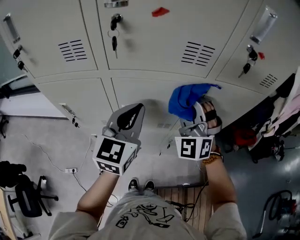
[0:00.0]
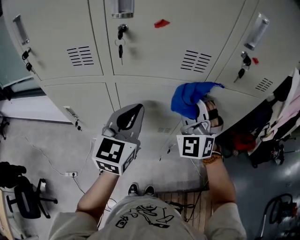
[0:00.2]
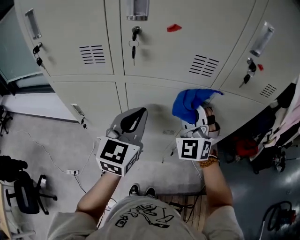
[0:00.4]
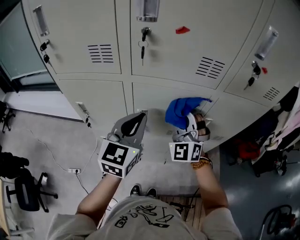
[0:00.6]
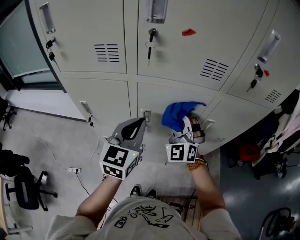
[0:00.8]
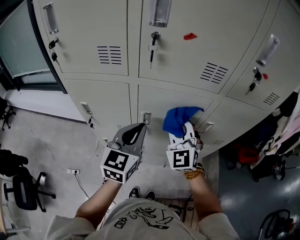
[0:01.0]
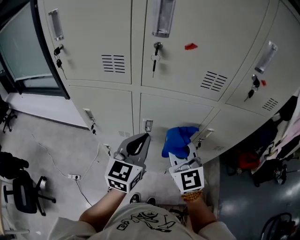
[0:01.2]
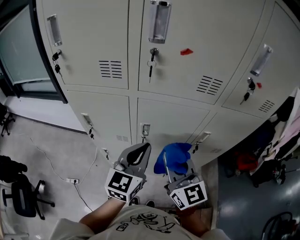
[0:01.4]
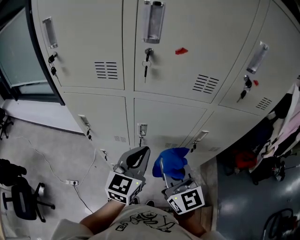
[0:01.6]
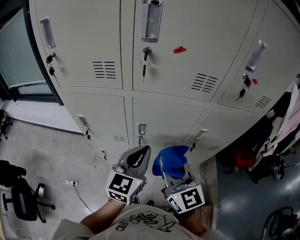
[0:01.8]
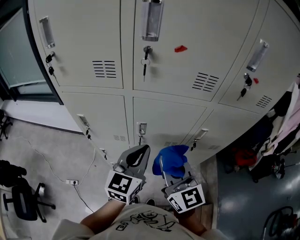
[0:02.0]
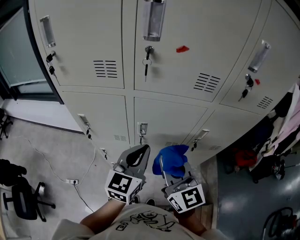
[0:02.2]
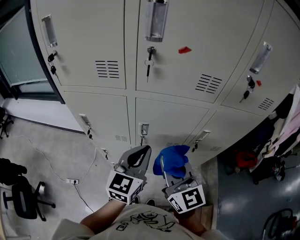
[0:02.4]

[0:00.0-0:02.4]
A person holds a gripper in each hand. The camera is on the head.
0:00.0 to 0:01.2: The left gripper travels backward by roughly 5 cm; the right gripper moves backward and to the left, approximately 10 cm, travels downward and back again, approximately 5 cm each way, and rotates around the line of its fingers by approximately 50 degrees, clockwise from behind.
0:01.2 to 0:02.4: The right gripper travels backward by roughly 5 cm.

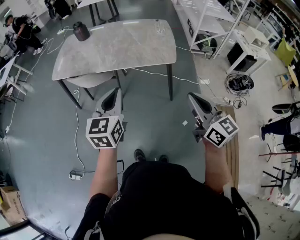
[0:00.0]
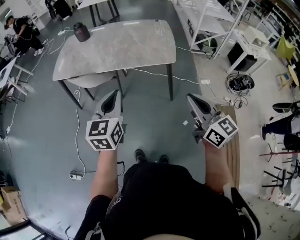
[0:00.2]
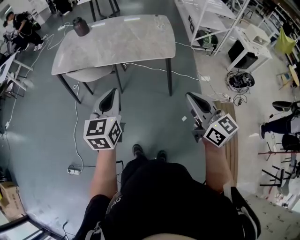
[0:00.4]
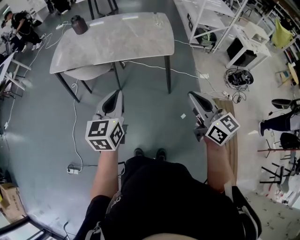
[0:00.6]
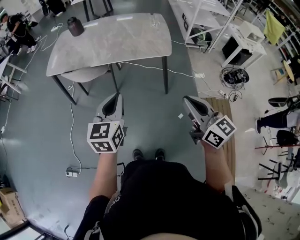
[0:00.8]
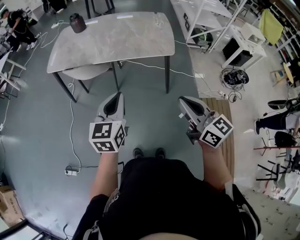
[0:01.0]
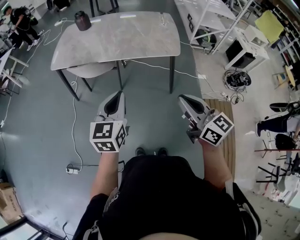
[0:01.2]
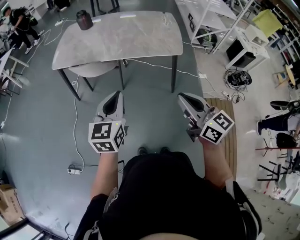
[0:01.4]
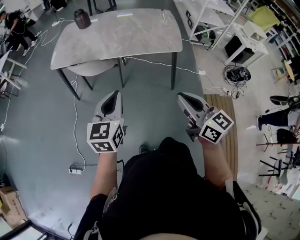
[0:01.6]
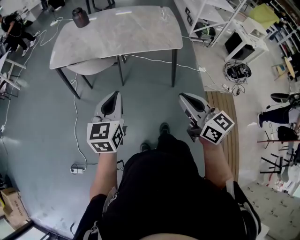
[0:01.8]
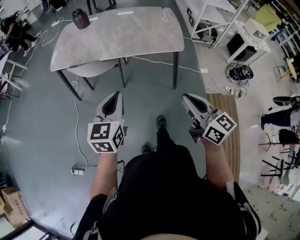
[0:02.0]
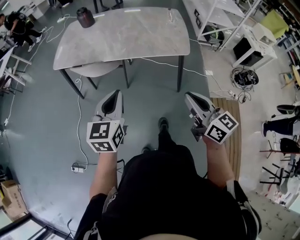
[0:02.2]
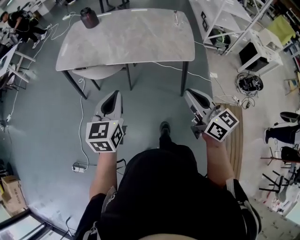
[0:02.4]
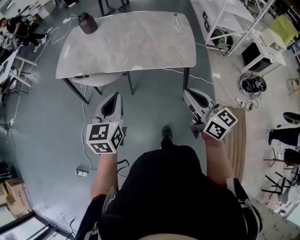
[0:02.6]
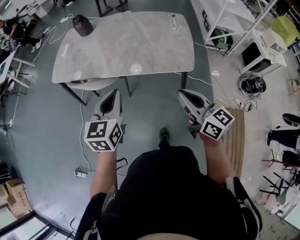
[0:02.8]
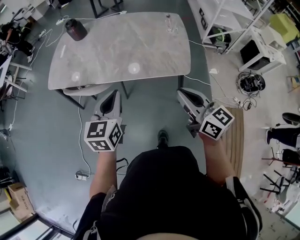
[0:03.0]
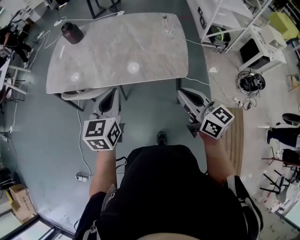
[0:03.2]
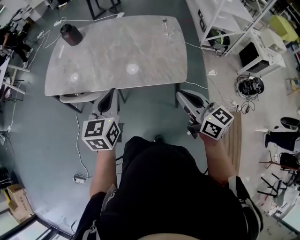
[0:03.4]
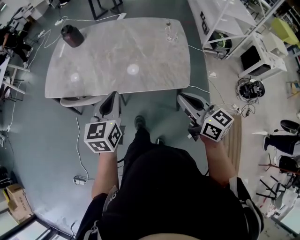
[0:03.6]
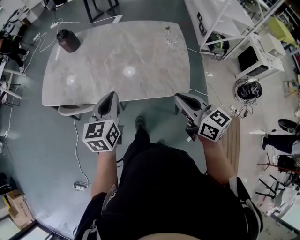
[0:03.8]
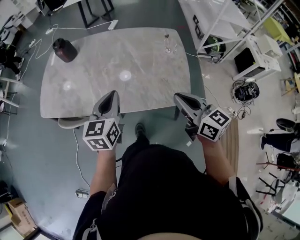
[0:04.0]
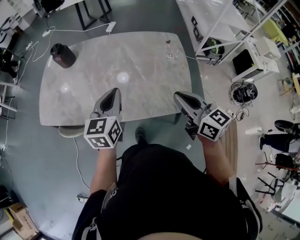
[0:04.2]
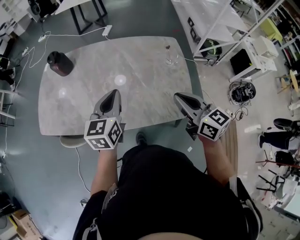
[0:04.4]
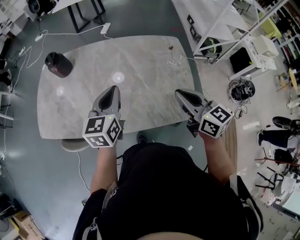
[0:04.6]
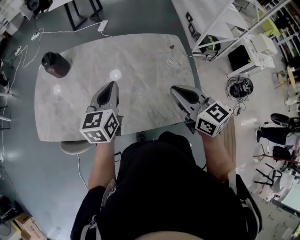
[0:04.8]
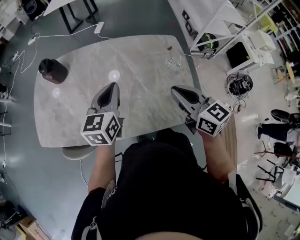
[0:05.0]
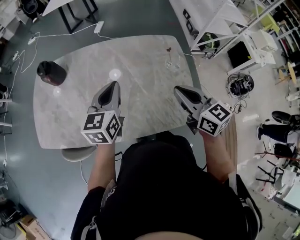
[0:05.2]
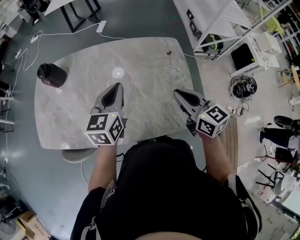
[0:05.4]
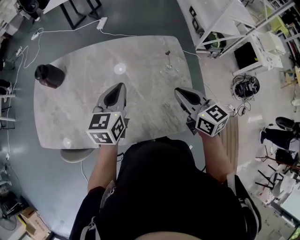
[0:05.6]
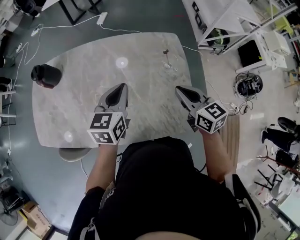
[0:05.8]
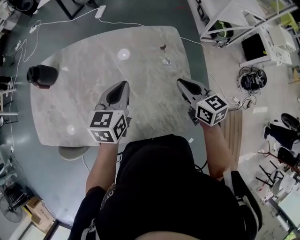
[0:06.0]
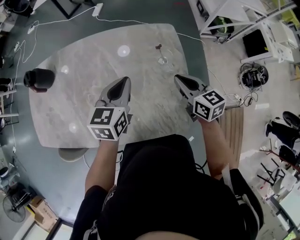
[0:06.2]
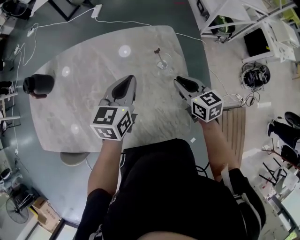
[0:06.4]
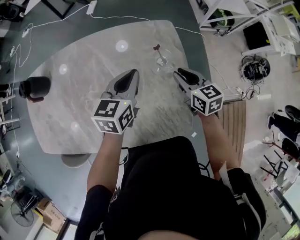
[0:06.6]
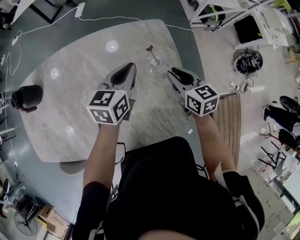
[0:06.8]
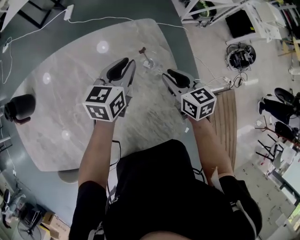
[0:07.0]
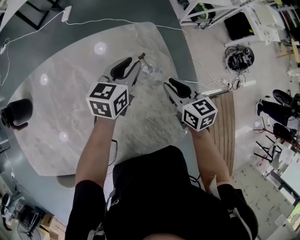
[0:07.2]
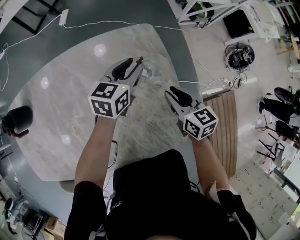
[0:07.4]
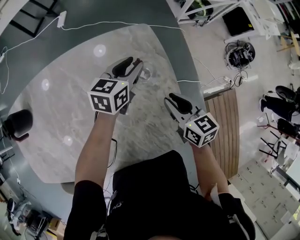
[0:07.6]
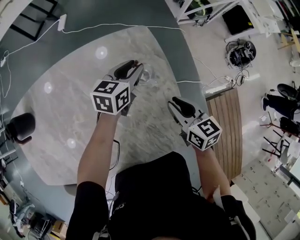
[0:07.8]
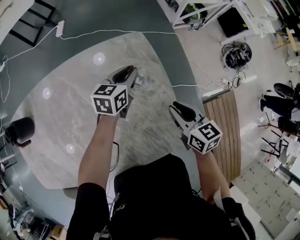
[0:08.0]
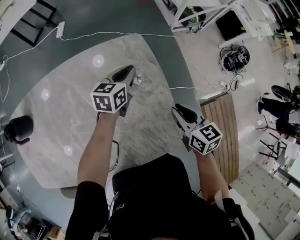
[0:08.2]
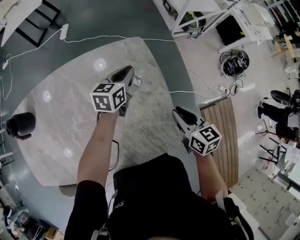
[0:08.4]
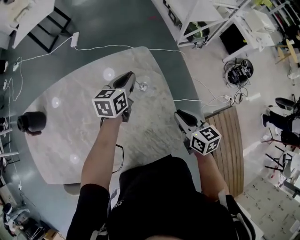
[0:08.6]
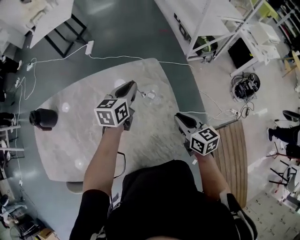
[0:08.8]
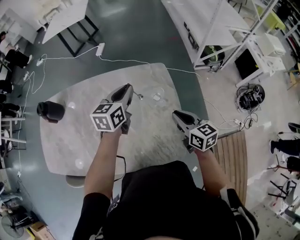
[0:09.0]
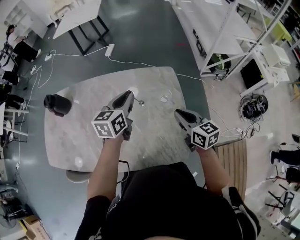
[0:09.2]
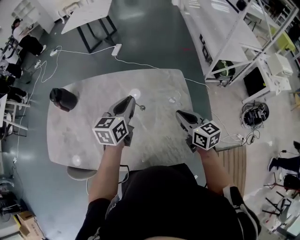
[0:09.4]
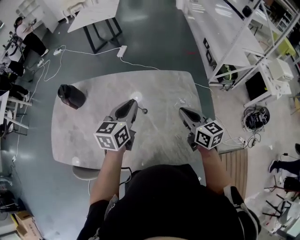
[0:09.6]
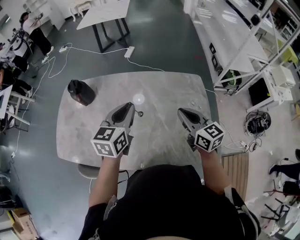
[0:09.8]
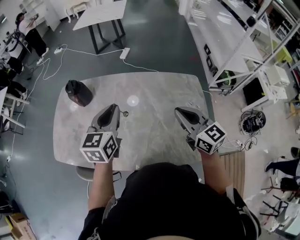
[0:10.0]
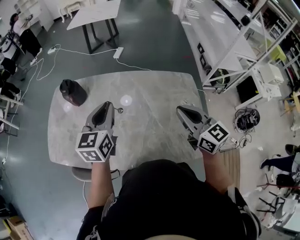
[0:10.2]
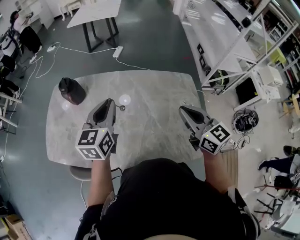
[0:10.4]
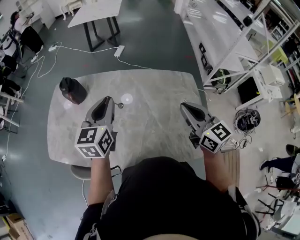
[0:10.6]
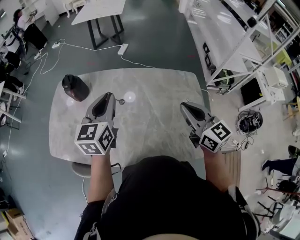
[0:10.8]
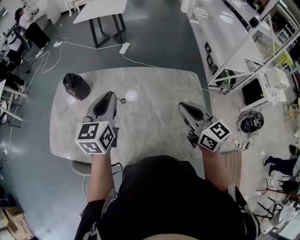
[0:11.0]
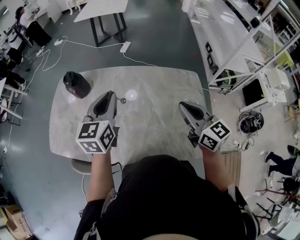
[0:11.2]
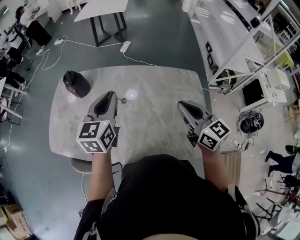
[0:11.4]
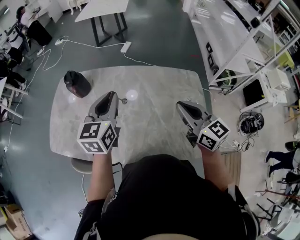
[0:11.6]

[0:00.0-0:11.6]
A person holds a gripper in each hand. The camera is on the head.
0:00.0 to 0:01.4: Both grippers move to the left, approximately 10 cm.
0:01.4 to 0:02.8: The right gripper is displaced forward and to the right by some 20 cm; the left gripper is displaced forward by approximately 20 cm.
0:02.8 to 0:04.4: The two grippers go approximately 30 cm forward.
0:04.4 to 0:05.8: The left gripper goes about 15 cm forward and to the right; the right gripper shifts about 20 cm forward, to the right and downward.
0:05.8 to 0:07.2: The right gripper goes approximately 15 cm downward, forward and to the right, and opens its fingers. Meanwhile the left gripper travels forward, to the right and downward by some 25 cm, turns by roughly 20 degrees, and opens up.
0:07.2 to 0:08.8: The right gripper moves backward, upward and to the right, some 10 cm, while the left gripper goes some 5 cm upward.
0:08.8 to 0:10.2: The left gripper shifts some 35 cm to the left, and changes its angle by roughly 30 degrees, while the right gripper heads to the left and upward, covering about 30 cm, and rotates some 30 degrees.
0:10.2 to 0:11.6: There are only small adjustments of the grippers.

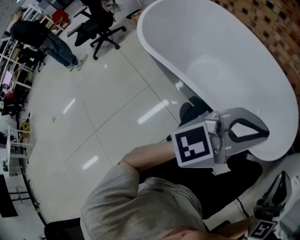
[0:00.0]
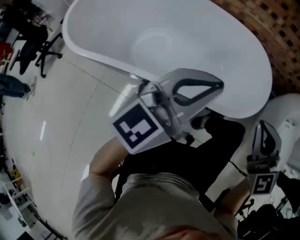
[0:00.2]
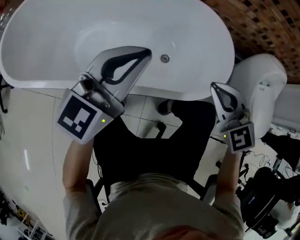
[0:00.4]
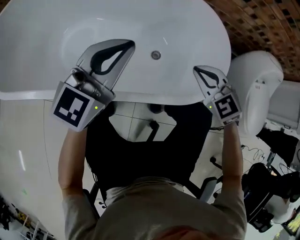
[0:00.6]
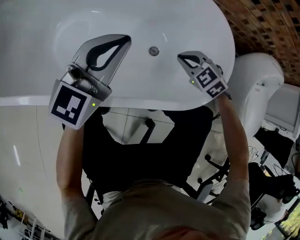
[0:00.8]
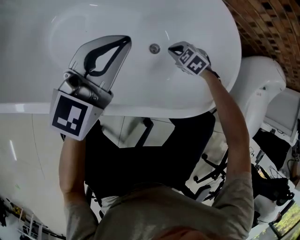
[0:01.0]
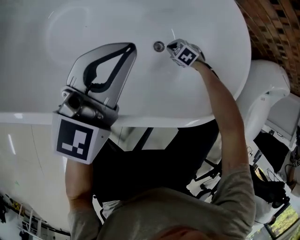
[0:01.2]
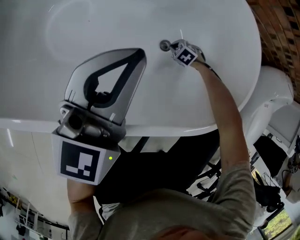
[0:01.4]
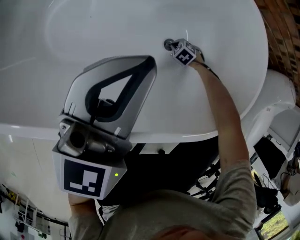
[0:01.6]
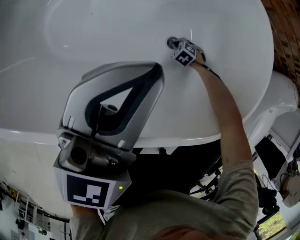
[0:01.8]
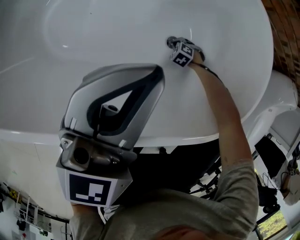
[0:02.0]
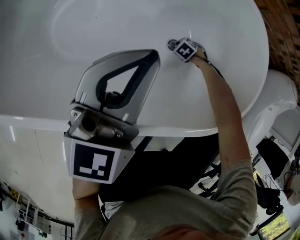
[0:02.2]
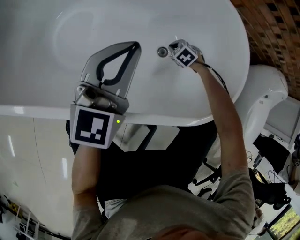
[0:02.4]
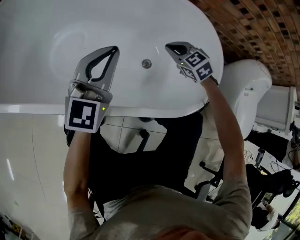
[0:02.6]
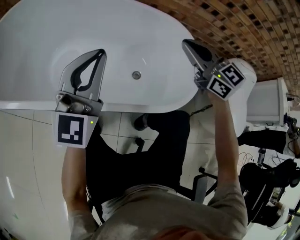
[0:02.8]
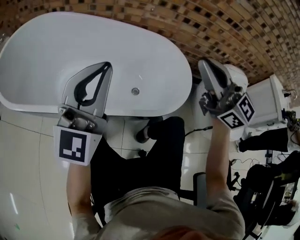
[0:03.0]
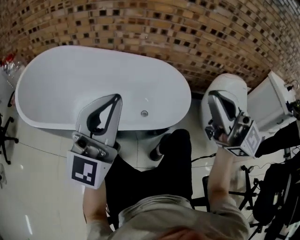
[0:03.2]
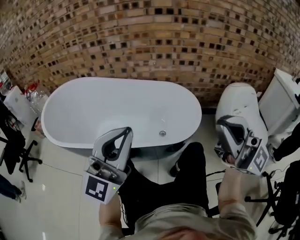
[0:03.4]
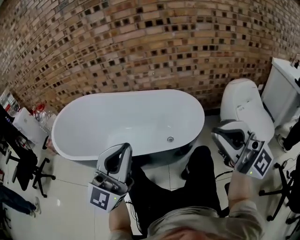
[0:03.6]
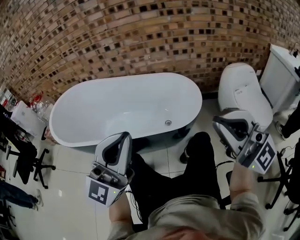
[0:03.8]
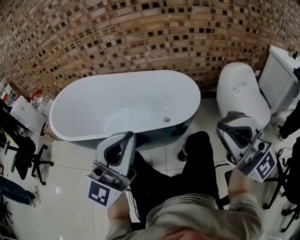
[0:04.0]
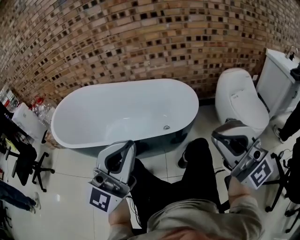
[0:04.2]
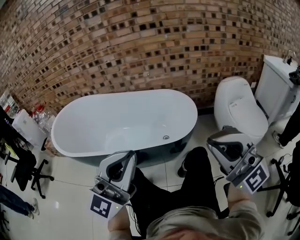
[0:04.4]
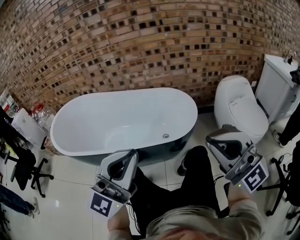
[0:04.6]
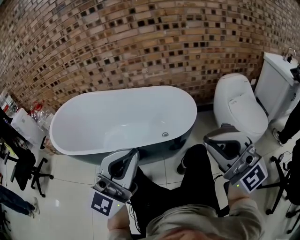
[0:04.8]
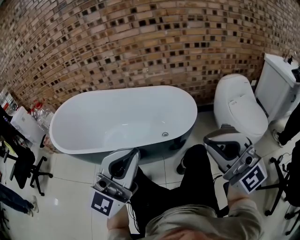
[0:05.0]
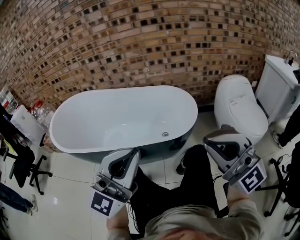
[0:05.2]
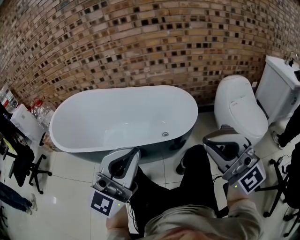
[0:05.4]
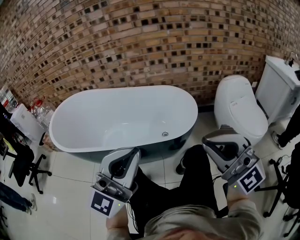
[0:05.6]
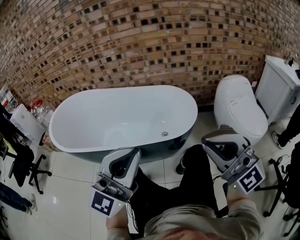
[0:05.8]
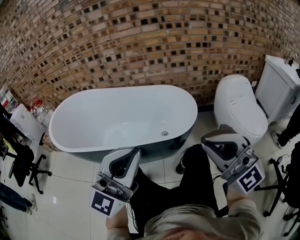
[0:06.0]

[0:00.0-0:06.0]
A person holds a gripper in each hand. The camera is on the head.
0:00.0 to 0:01.6: The left gripper goes about 25 cm downward, and swivels some 30 degrees. The right gripper goes about 80 cm downward, and angles its fingers downward, by about 70 degrees.
0:01.6 to 0:03.0: The left gripper heads upward, covering some 25 cm, and swivels about 30 degrees, while the right gripper is displaced upward by some 80 cm, and angles its fingers upward, by roughly 90 degrees.
0:03.0 to 0:04.4: The two grippers go about 30 cm backward. The left gripper turns by some 20 degrees, while the right gripper swivels about 40 degrees.
0:04.4 to 0:06.0: There are only small adjustments of the grippers.

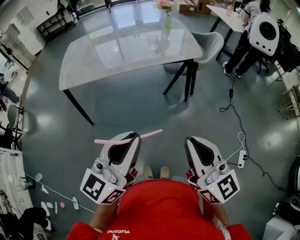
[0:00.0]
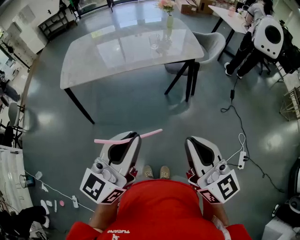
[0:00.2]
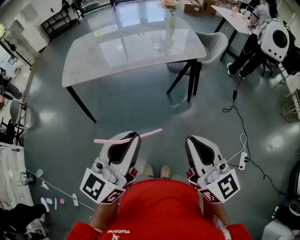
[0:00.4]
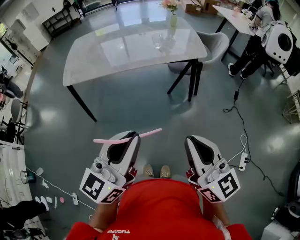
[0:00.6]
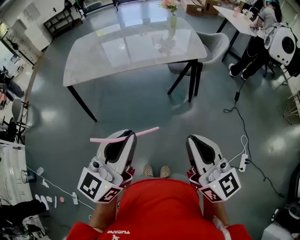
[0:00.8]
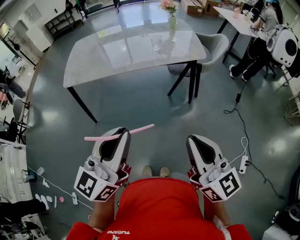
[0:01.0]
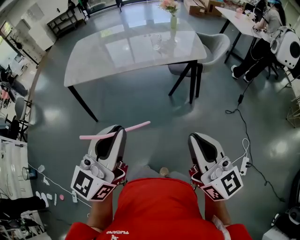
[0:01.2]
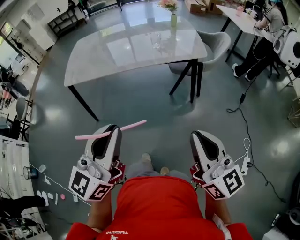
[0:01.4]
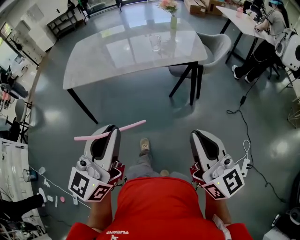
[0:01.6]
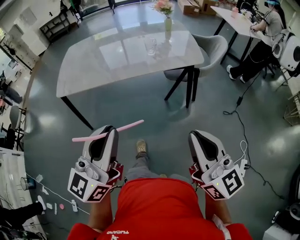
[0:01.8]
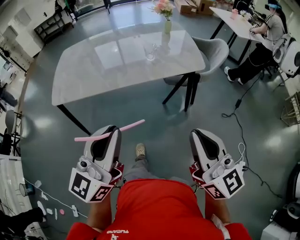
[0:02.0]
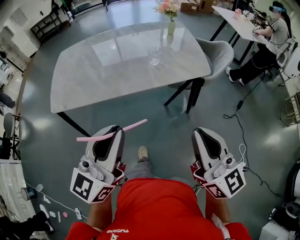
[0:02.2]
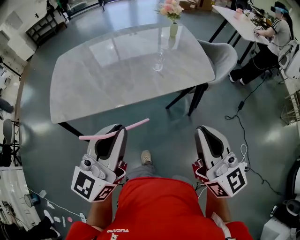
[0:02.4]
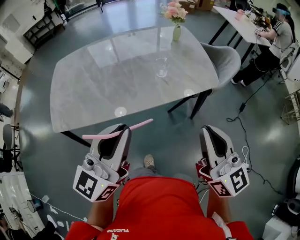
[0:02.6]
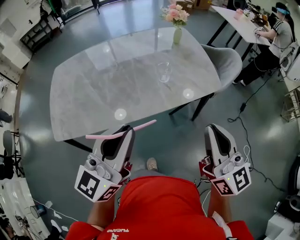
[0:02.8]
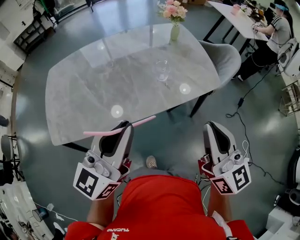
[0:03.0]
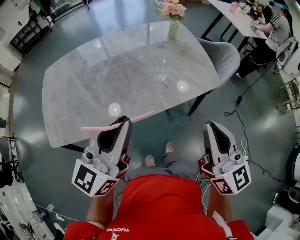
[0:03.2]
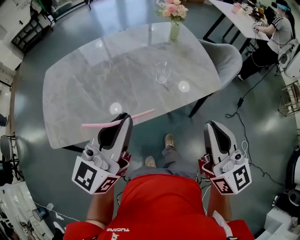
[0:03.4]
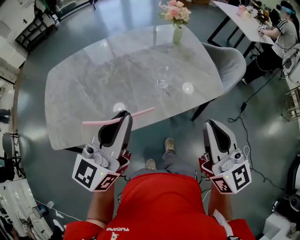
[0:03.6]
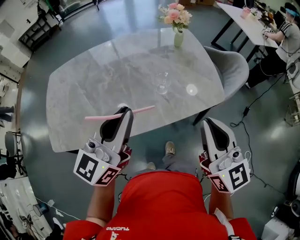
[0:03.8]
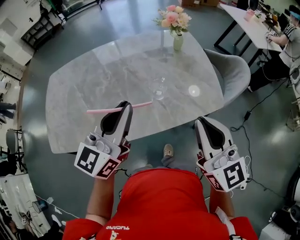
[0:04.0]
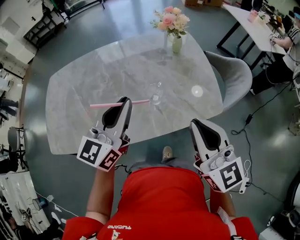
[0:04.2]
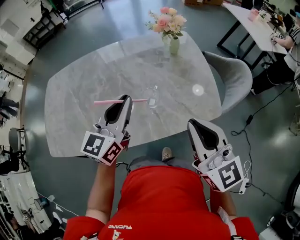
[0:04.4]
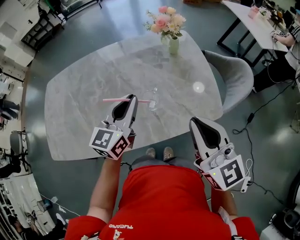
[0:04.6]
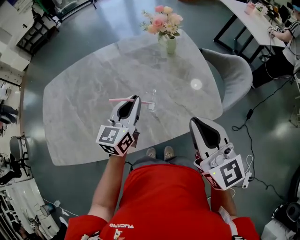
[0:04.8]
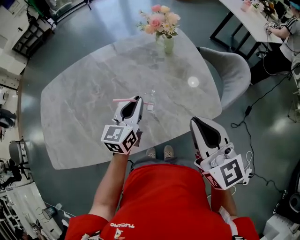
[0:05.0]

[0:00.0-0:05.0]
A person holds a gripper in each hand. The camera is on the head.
0:00.0 to 0:01.6: The right gripper goes about 5 cm to the right.
0:01.6 to 0:03.4: The grippers both shift forward by approximately 40 cm.
0:03.4 to 0:05.0: The right gripper goes some 20 cm forward. The left gripper is displaced forward, downward and to the right by approximately 35 cm, and rotates about 20 degrees.
